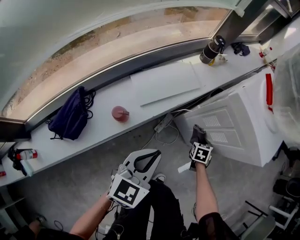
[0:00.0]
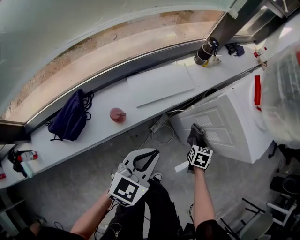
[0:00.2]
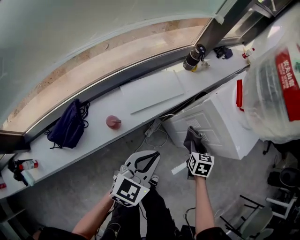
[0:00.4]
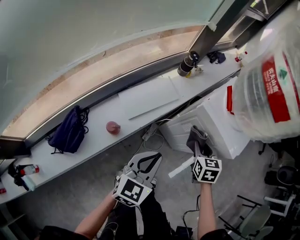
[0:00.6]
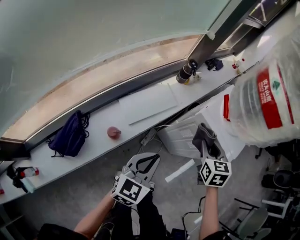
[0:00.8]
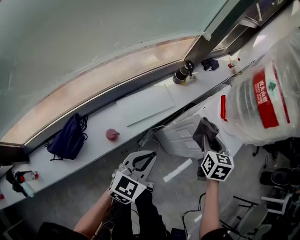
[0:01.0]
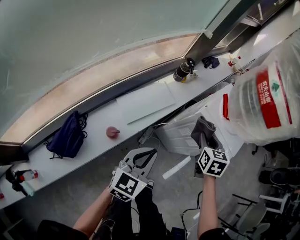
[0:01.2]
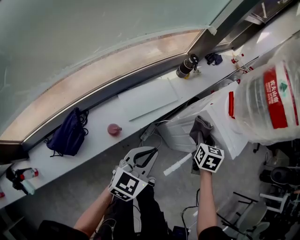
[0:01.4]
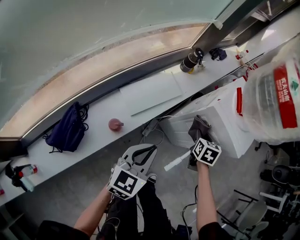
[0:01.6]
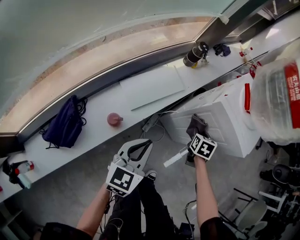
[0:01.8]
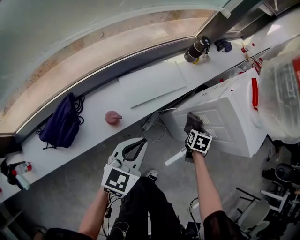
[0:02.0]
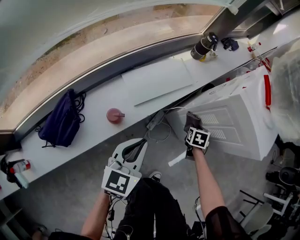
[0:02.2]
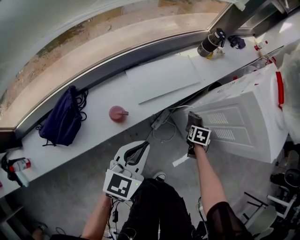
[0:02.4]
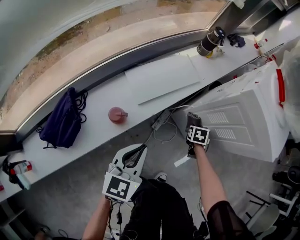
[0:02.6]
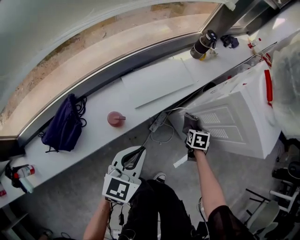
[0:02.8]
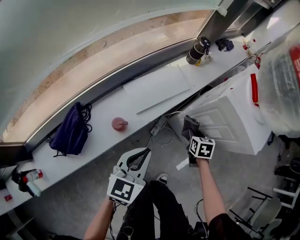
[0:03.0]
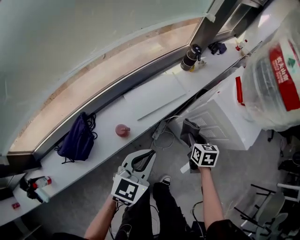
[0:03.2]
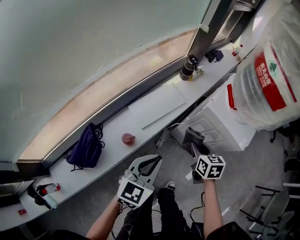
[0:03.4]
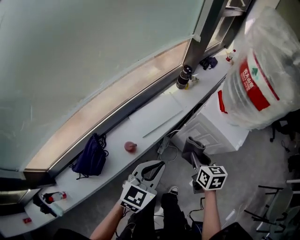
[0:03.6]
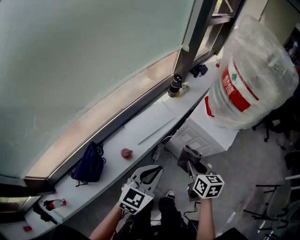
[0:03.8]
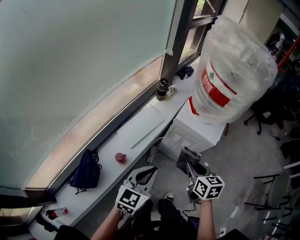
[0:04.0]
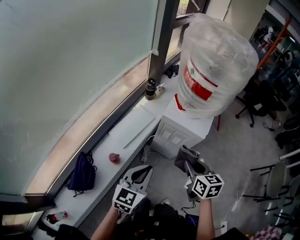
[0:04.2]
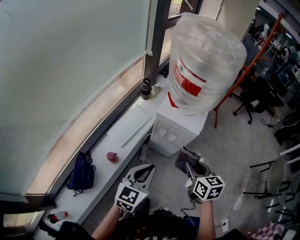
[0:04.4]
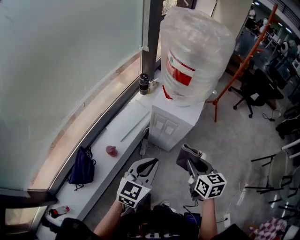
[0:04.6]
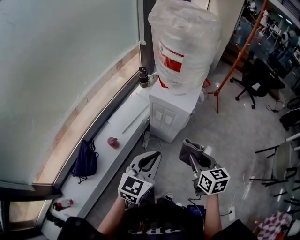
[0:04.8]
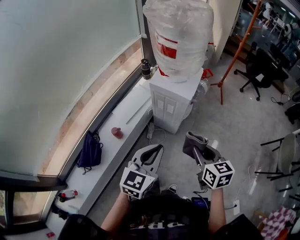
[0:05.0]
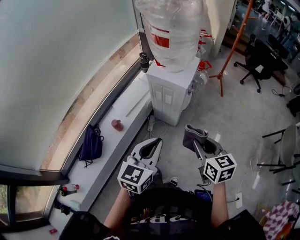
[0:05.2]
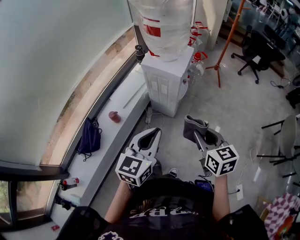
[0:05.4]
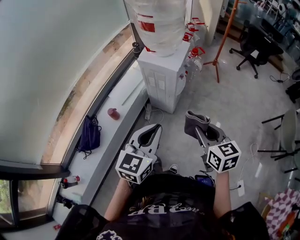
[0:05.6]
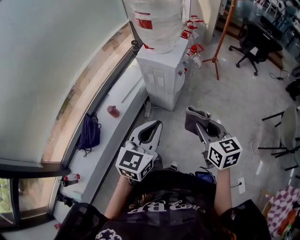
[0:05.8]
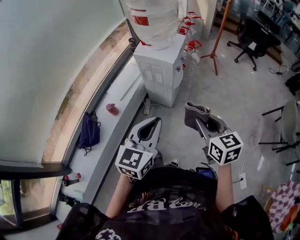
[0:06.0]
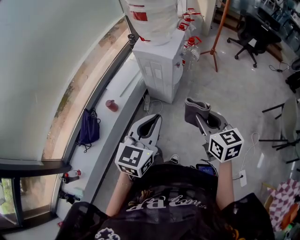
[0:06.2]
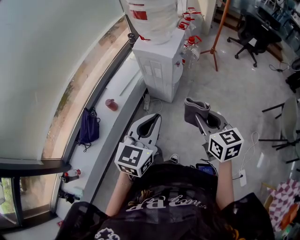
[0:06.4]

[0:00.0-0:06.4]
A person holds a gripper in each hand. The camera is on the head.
0:00.0 to 0:01.6: The left gripper goes roughly 10 cm upward; the right gripper goes some 25 cm upward.
0:01.6 to 0:03.2: The right gripper moves backward, approximately 5 cm, and travels downward and back again, approximately 25 cm each way; the left gripper moves roughly 15 cm downward and comes back.
0:03.2 to 0:04.8: The right gripper is displaced upward, backward and to the right by roughly 40 cm, and changes its angle by some 20 degrees, while the left gripper heads upward, to the right and backward, covering about 30 cm.
0:04.8 to 0:06.4: The grippers both shift backward and to the right by about 15 cm.

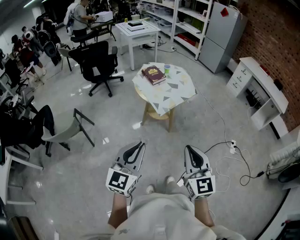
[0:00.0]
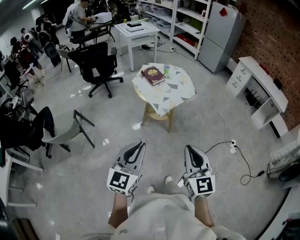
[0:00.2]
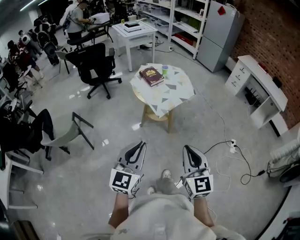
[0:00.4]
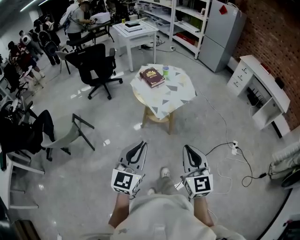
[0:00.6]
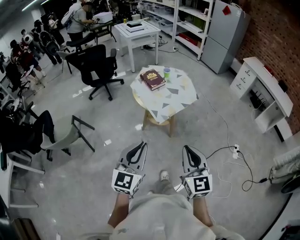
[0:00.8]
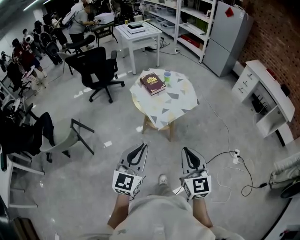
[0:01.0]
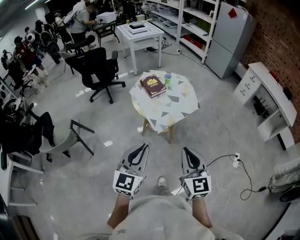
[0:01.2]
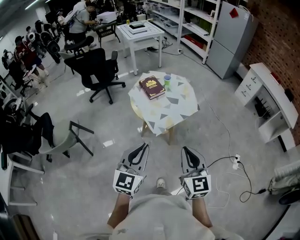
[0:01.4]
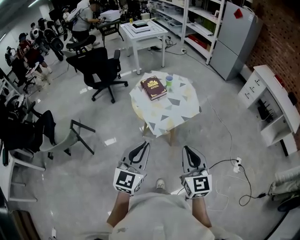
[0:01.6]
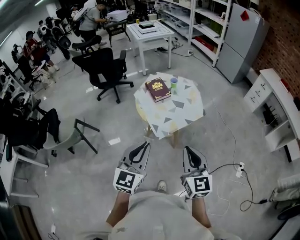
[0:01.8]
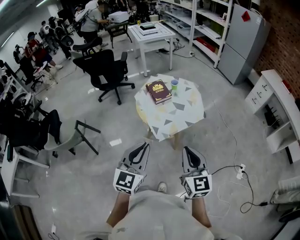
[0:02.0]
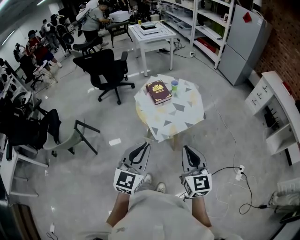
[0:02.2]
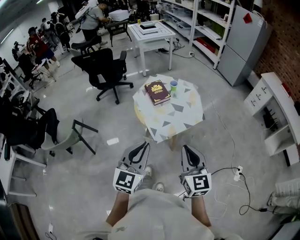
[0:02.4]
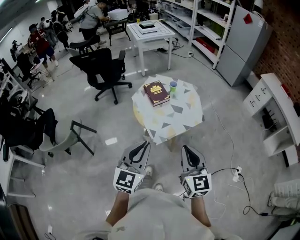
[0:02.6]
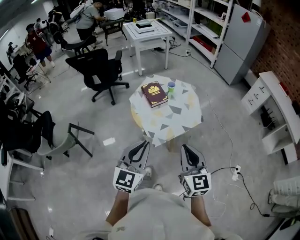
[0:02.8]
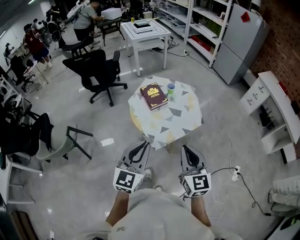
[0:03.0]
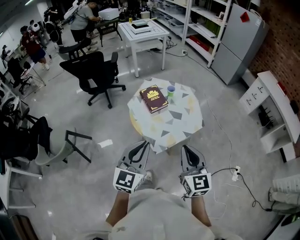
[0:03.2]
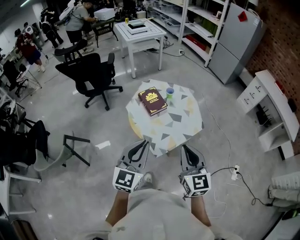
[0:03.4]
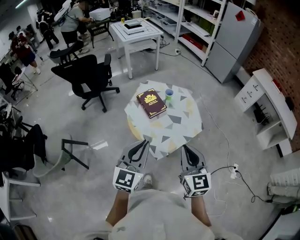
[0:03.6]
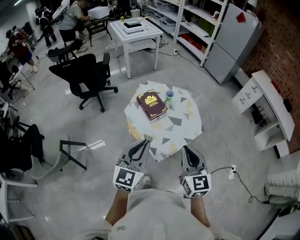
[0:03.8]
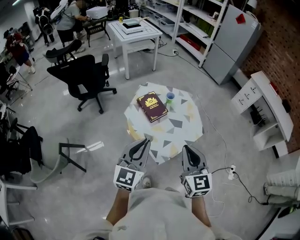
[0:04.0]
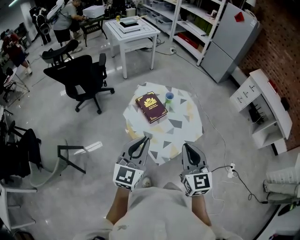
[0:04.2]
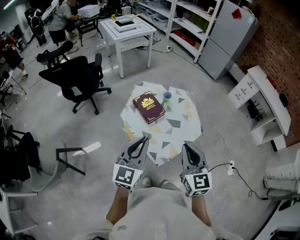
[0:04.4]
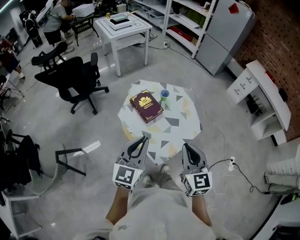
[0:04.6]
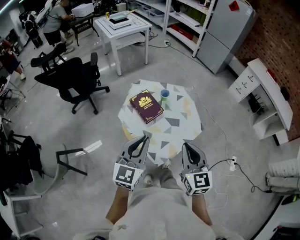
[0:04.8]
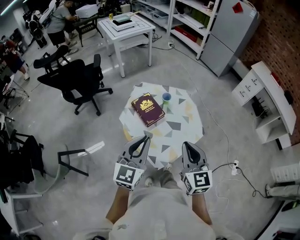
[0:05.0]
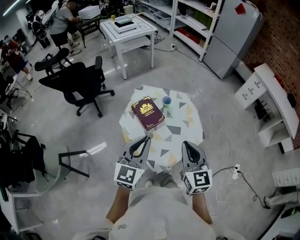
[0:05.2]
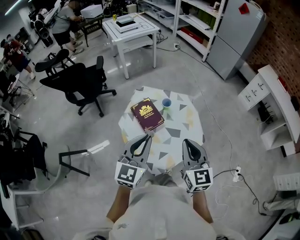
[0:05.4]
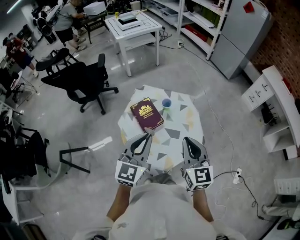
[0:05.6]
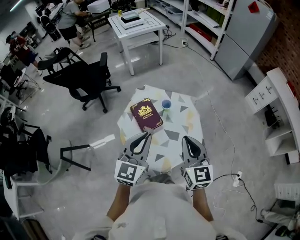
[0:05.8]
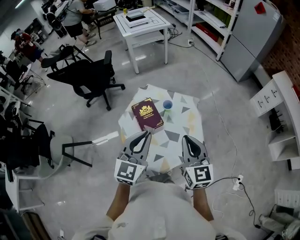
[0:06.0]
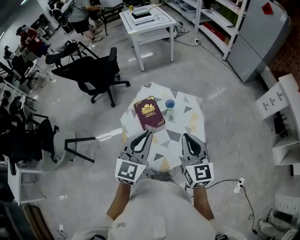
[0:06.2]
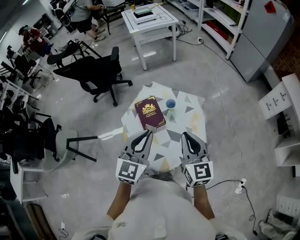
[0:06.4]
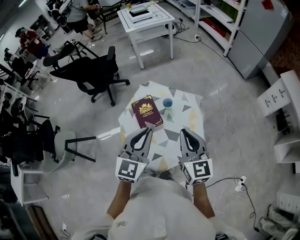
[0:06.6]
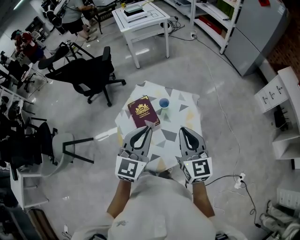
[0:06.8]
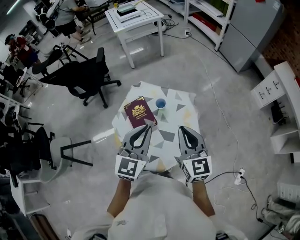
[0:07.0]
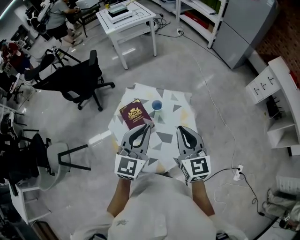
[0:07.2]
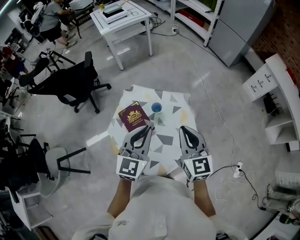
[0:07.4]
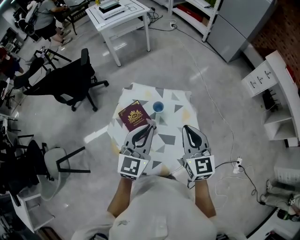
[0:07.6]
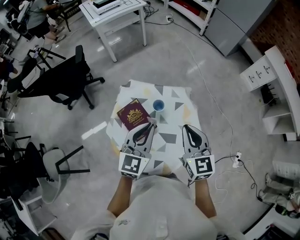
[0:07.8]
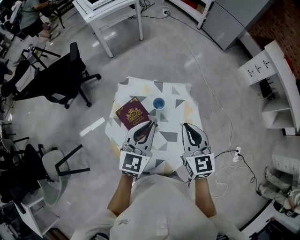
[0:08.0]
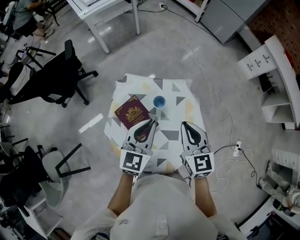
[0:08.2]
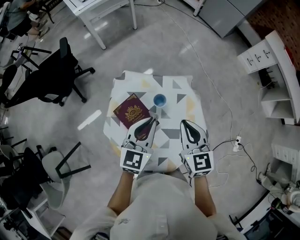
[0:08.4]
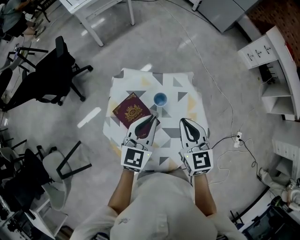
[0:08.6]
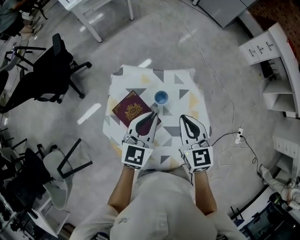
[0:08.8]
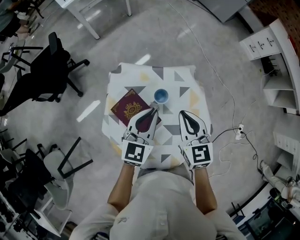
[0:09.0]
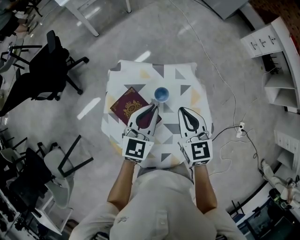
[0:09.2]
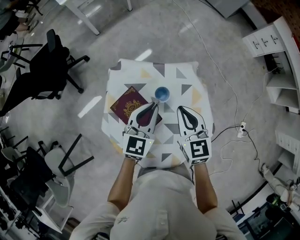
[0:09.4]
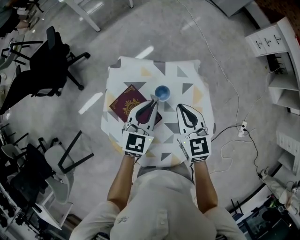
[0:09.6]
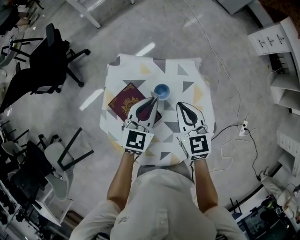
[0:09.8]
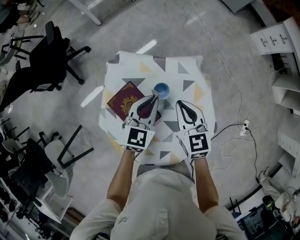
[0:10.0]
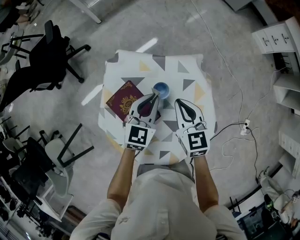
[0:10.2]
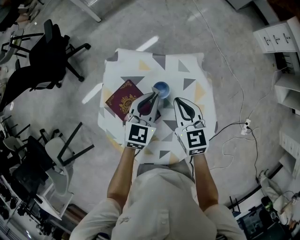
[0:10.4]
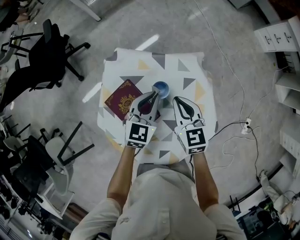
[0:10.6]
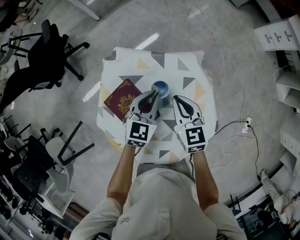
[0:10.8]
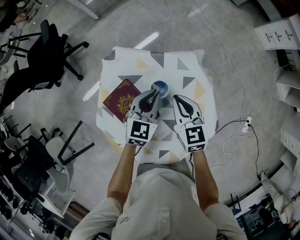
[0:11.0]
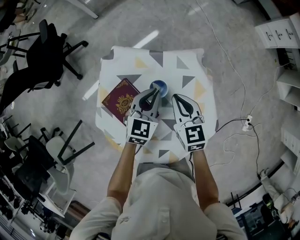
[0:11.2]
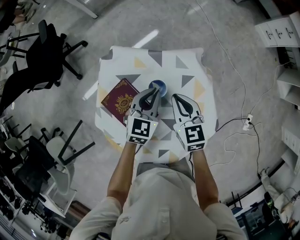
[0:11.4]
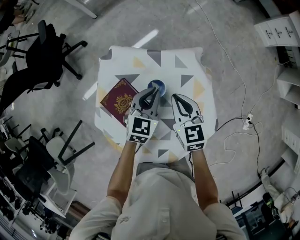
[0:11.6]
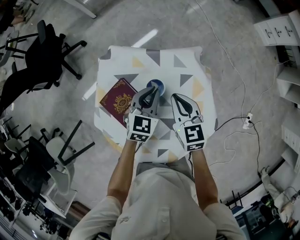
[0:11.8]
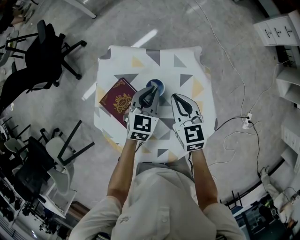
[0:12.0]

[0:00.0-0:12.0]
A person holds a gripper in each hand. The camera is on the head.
0:00.0 to 0:01.6: The grippers both shift forward by about 20 cm.
0:01.6 to 0:03.0: Both grippers travel together forward, approximately 10 cm.
0:03.0 to 0:04.4: The two grippers go approximately 15 cm forward and to the left.
0:04.4 to 0:06.0: The grippers both shift forward and to the right by some 20 cm.
0:06.0 to 0:07.6: Both grippers move forward, roughly 10 cm.
0:07.6 to 0:09.0: The left gripper heads downward and forward, covering approximately 15 cm, while the right gripper is displaced downward, forward and to the left by about 15 cm.
0:09.0 to 0:10.4: Both grippers move downward, some 10 cm.
0:10.4 to 0:12.0: The left gripper is displaced downward by roughly 5 cm.

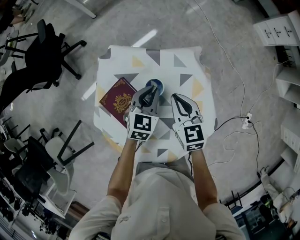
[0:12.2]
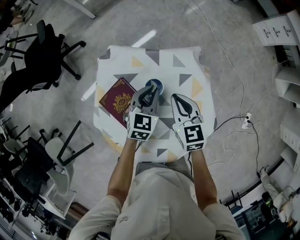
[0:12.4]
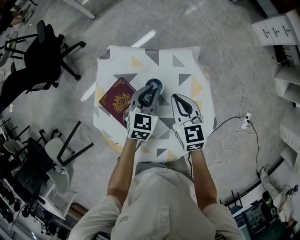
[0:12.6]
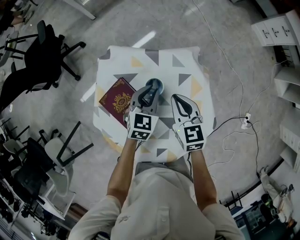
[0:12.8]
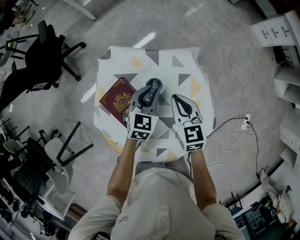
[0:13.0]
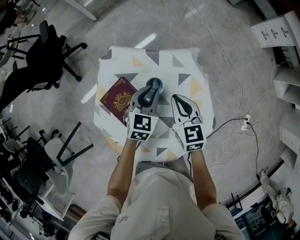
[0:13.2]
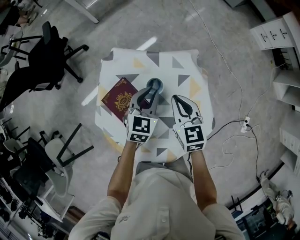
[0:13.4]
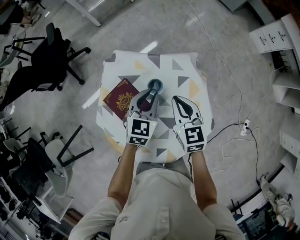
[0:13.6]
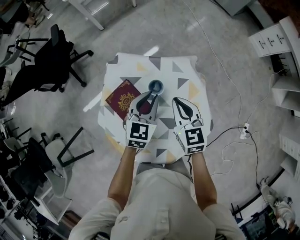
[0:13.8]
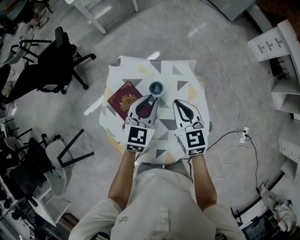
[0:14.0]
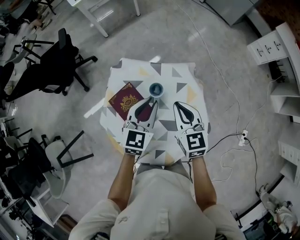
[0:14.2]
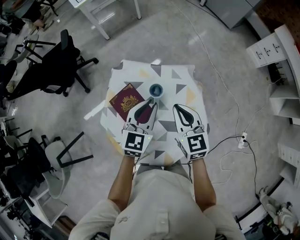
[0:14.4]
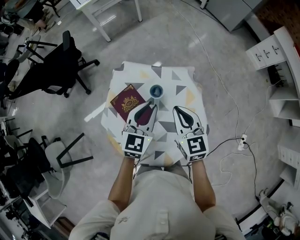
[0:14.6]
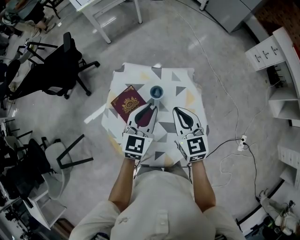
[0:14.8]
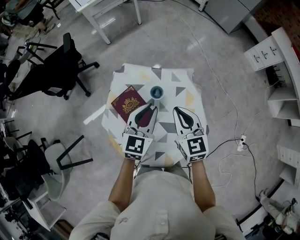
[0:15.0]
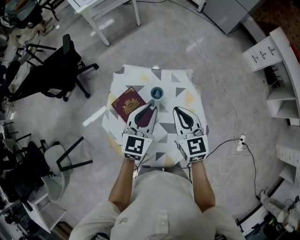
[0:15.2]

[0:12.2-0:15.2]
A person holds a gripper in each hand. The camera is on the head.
0:12.2 to 0:13.8: The grippers both shift upward by approximately 10 cm.
0:13.8 to 0:15.2: Both grippers travel together upward, roughly 10 cm.

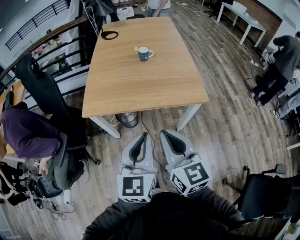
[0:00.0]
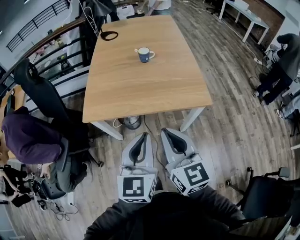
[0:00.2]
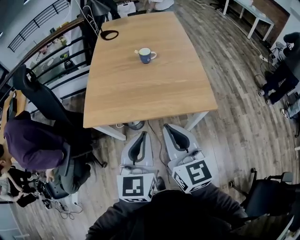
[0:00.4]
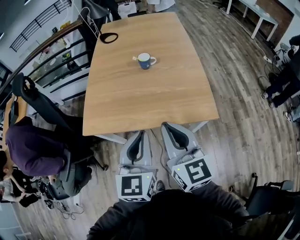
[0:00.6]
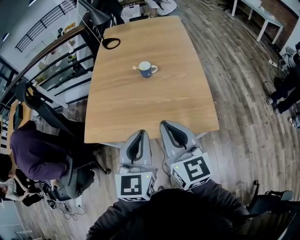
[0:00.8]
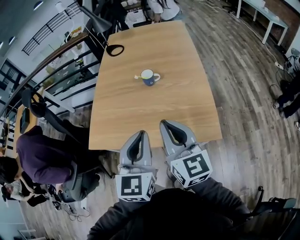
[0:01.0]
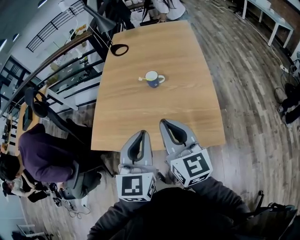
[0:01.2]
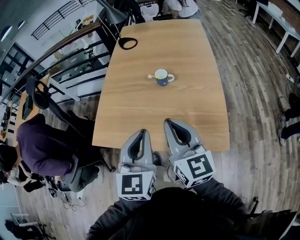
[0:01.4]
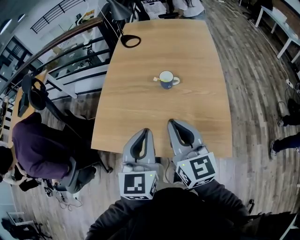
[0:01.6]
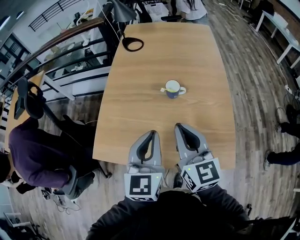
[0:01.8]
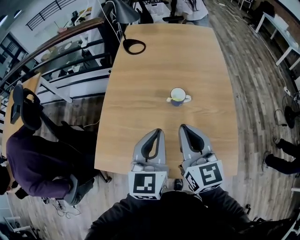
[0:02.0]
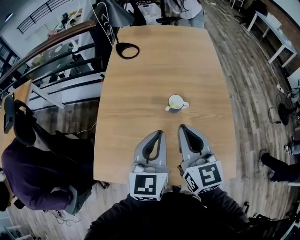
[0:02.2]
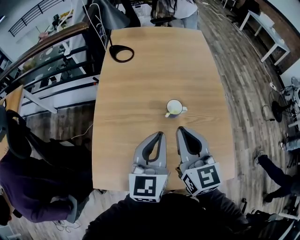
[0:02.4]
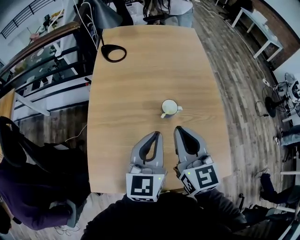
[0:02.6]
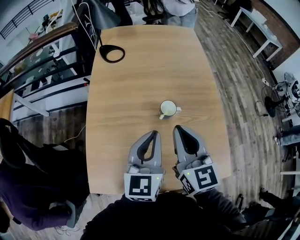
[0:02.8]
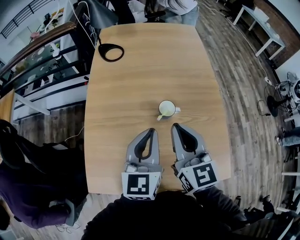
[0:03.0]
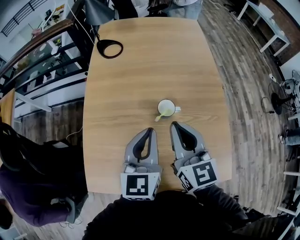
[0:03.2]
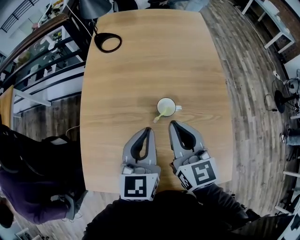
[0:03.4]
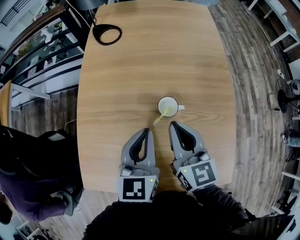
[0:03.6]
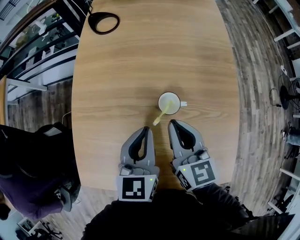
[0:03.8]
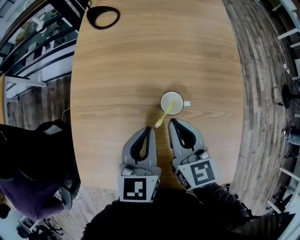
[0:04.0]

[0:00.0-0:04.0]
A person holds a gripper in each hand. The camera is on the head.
0:00.0 to 0:01.4: Both grippers travel together forward, about 25 cm.
0:01.4 to 0:02.6: The two grippers go some 20 cm forward. The left gripper turns by roughly 20 degrees.
0:02.6 to 0:04.0: The grippers both shift downward and forward by approximately 15 cm.
